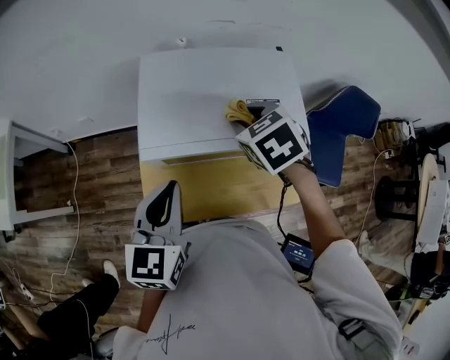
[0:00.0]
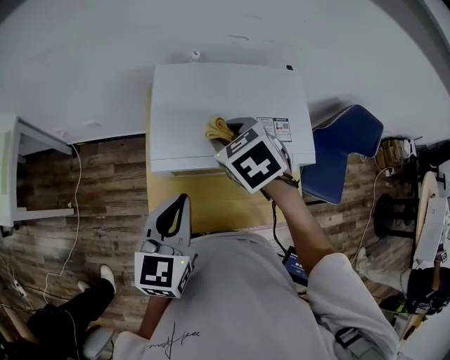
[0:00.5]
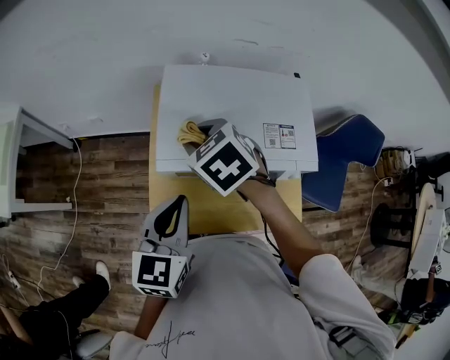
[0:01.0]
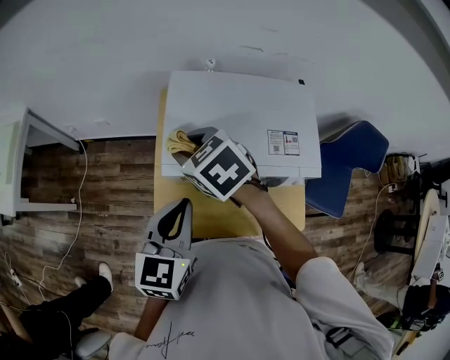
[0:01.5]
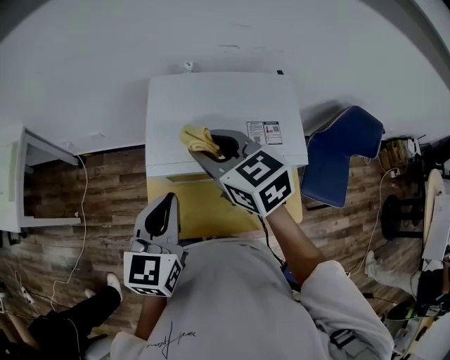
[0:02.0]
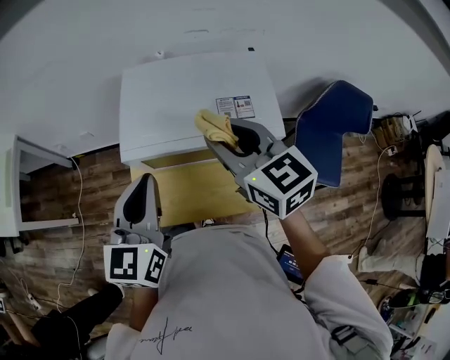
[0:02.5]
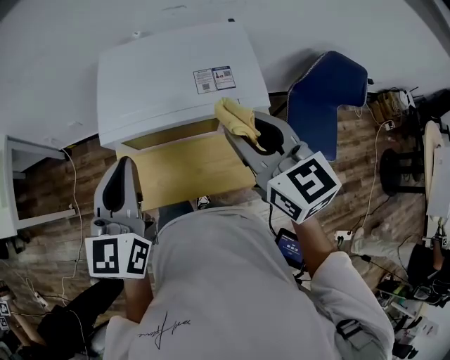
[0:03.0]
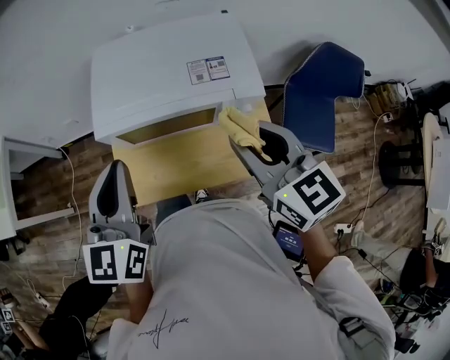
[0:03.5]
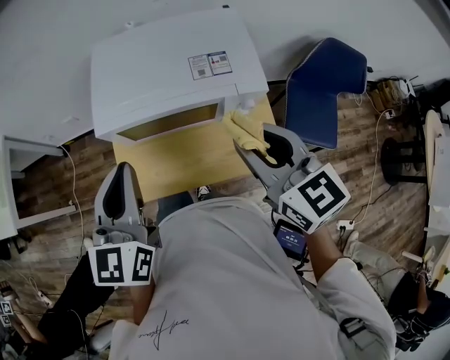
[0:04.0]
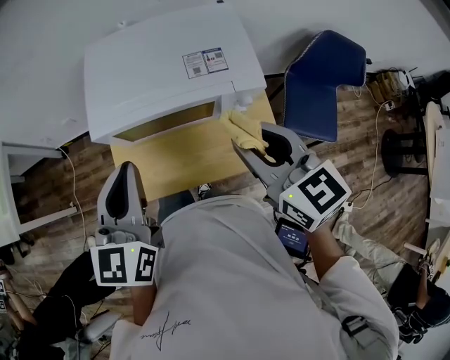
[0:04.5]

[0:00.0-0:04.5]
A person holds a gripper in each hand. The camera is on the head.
0.0 to 2.0 s: The right gripper is displaced to the left and upward by roughly 10 cm, and changes its angle by some 40 degrees.
2.0 to 4.5 s: The left gripper changes place by some 5 cm. Meanwhile the right gripper shifts about 25 cm to the right and backward.

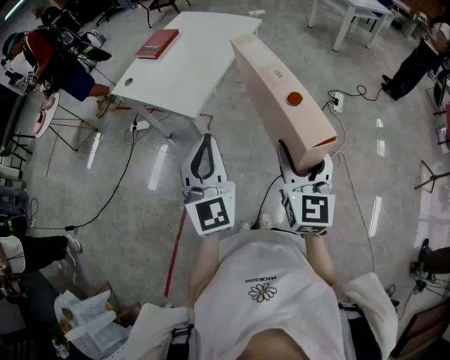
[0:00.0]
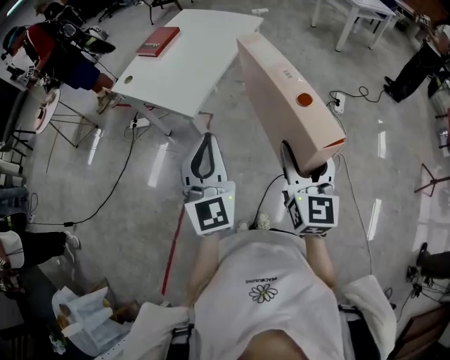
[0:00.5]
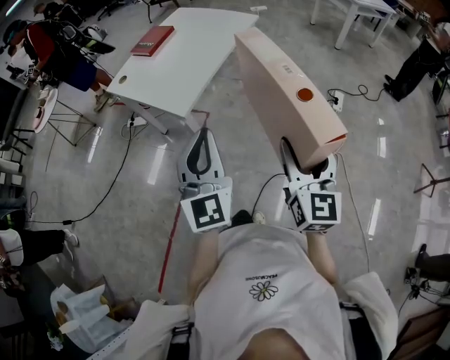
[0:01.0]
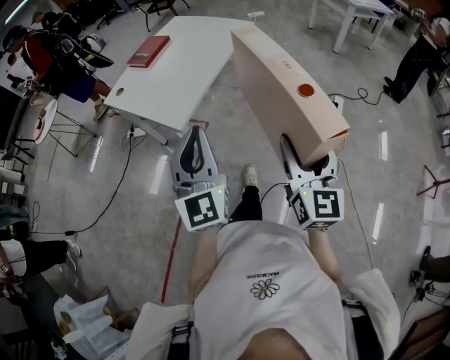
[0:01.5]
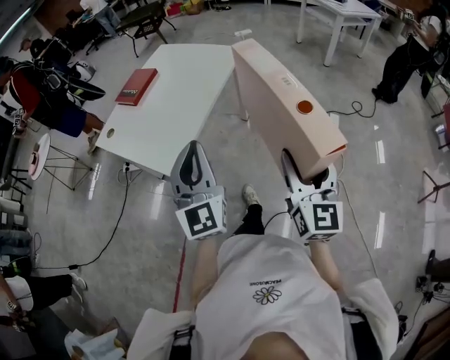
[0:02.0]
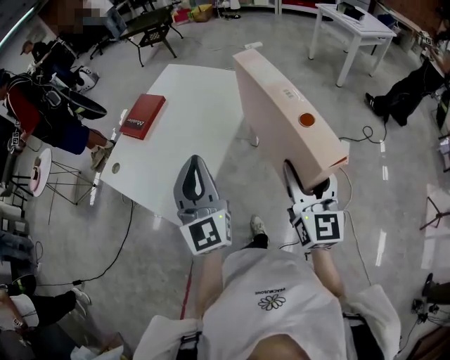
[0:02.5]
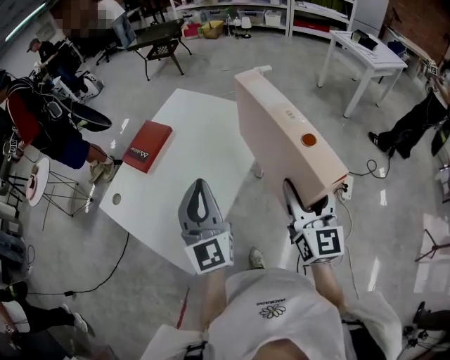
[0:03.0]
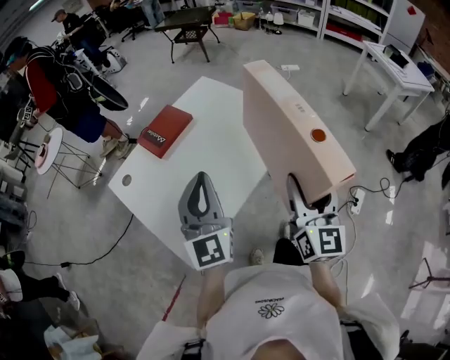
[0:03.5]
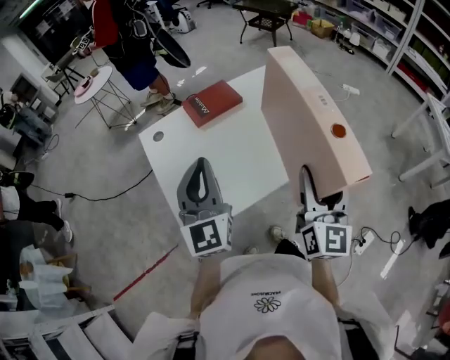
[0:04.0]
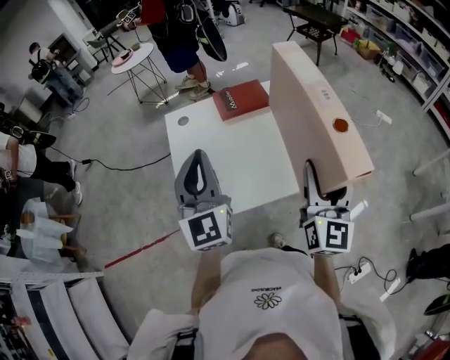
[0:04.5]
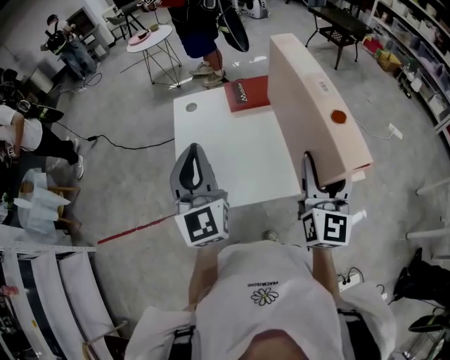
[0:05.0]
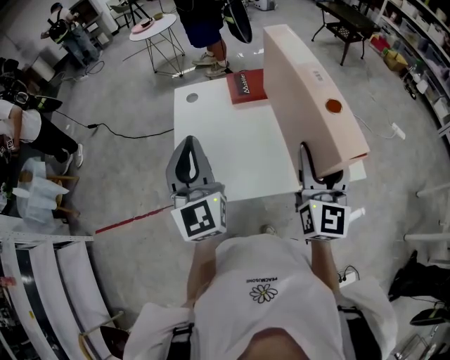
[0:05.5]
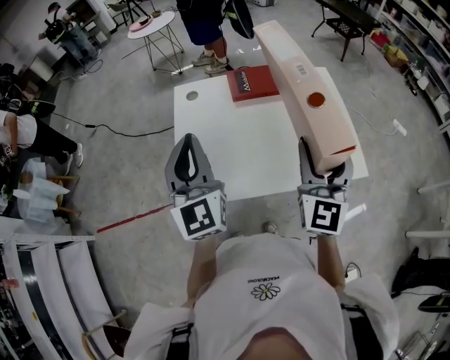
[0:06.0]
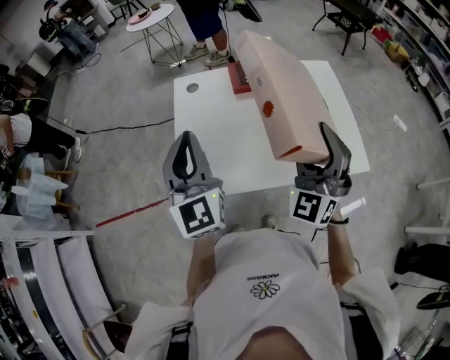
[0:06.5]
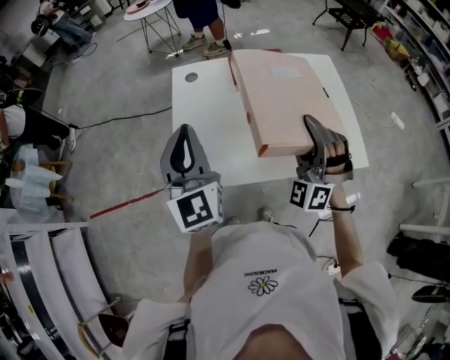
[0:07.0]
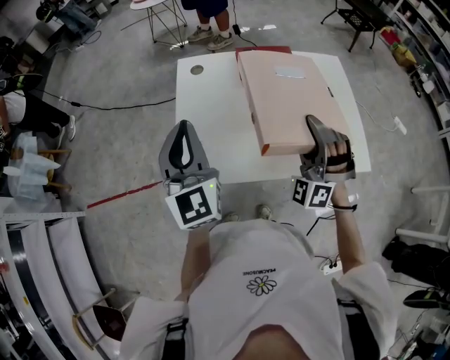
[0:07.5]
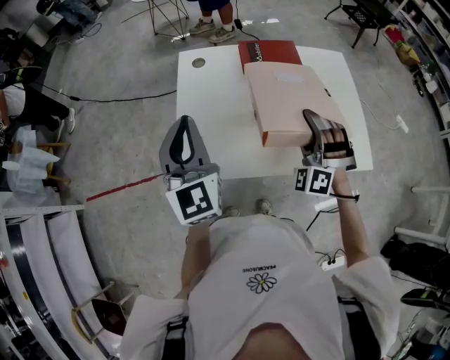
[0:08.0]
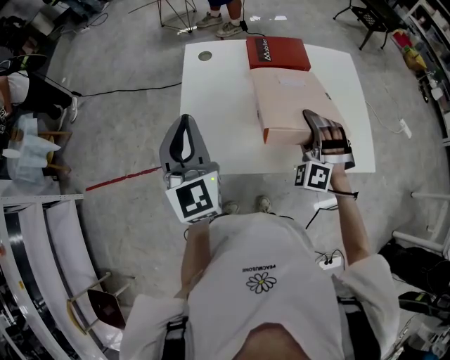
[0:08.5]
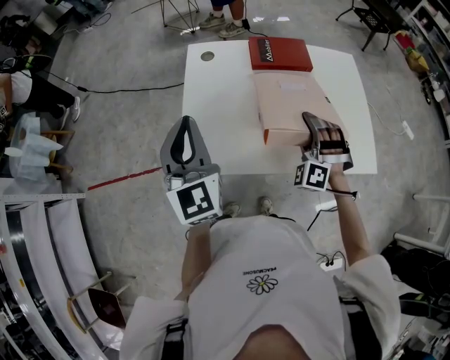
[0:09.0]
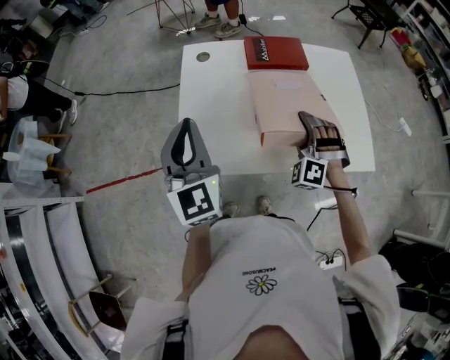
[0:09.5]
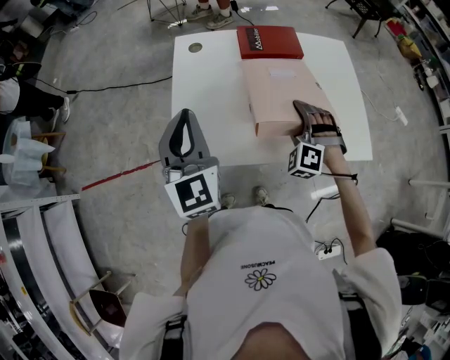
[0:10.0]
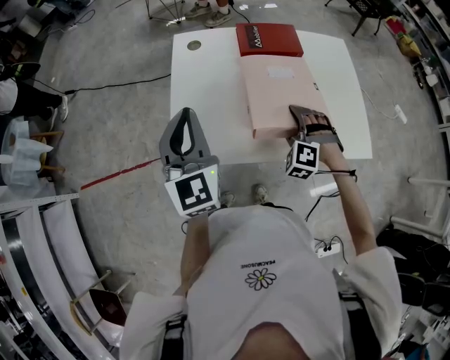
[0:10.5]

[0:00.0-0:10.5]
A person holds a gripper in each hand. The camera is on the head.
0.0 to 2.0 s: The left gripper shifts some 20 cm forward, while the right gripper is displaced forward and to the right by some 20 cm.
2.0 to 4.0 s: The left gripper moves some 30 cm, and turns by some 30 degrees; the right gripper changes place by some 40 cm, and changes its angle by roughly 30 degrees.
4.0 to 6.5 s: The left gripper changes place by roughly 5 cm, and changes its angle by approximately 30 degrees. The right gripper moves about 15 cm, and rolls counterclockwise, seen from behind, by approximately 50 degrees.
6.5 to 8.5 s: The left gripper changes place by roughly 5 cm. The right gripper goes roughly 15 cm downward and forward, and rotates roughly 50 degrees.
8.5 to 10.5 s: The right gripper goes some 10 cm downward, and changes its angle by some 20 degrees.

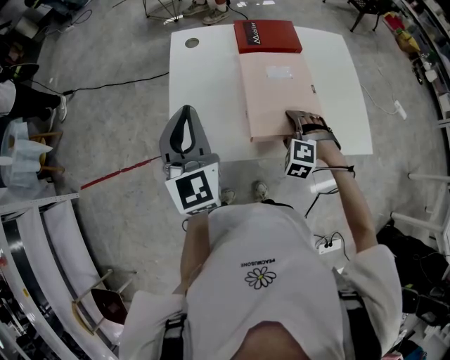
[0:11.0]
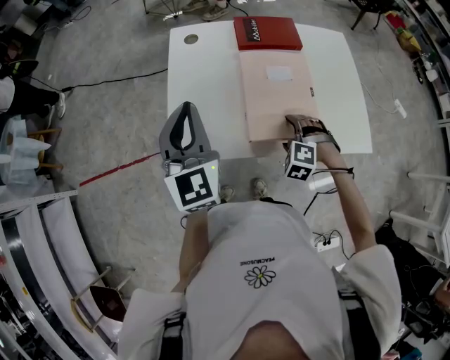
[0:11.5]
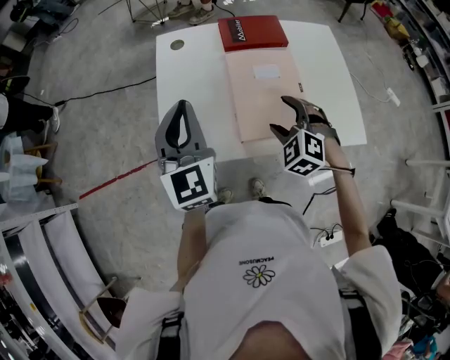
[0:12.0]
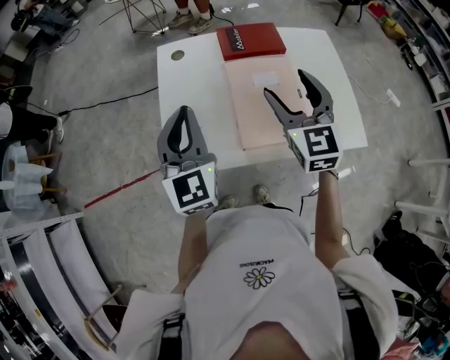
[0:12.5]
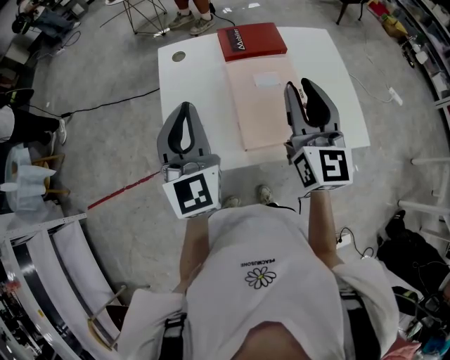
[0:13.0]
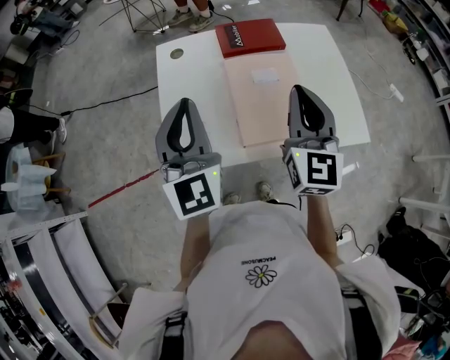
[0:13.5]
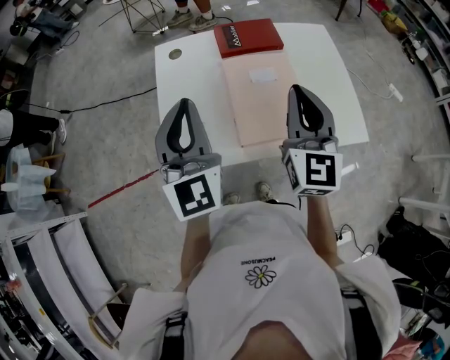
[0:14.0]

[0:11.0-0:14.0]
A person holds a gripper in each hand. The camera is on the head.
11.0 to 12.5 s: The right gripper travels upward by roughly 25 cm, and tilts its fingers about 50 degrees upward.
12.5 to 14.0 s: The left gripper shifts by roughly 5 cm. Meanwhile the right gripper shifts by roughly 5 cm, and closes its fingers.

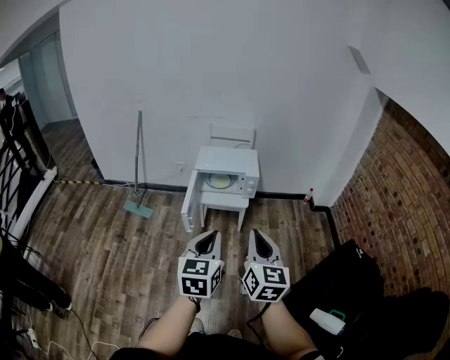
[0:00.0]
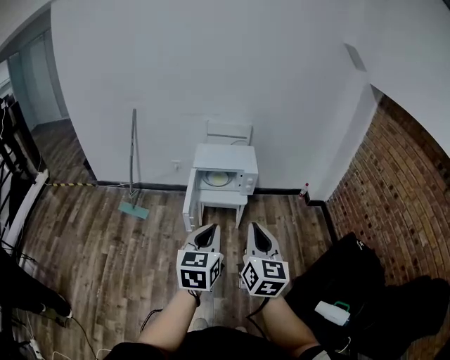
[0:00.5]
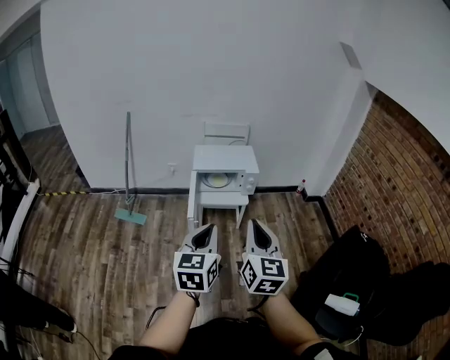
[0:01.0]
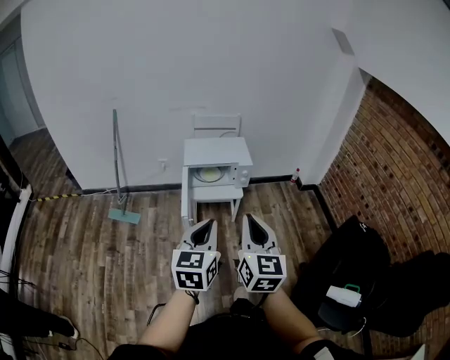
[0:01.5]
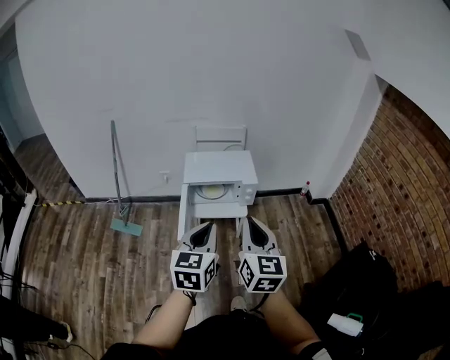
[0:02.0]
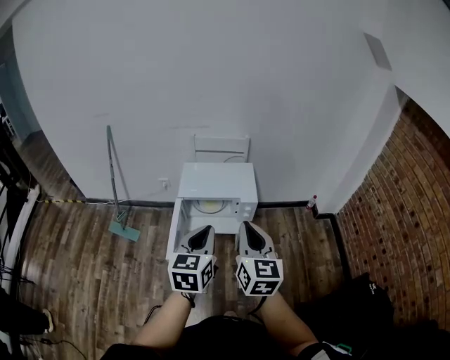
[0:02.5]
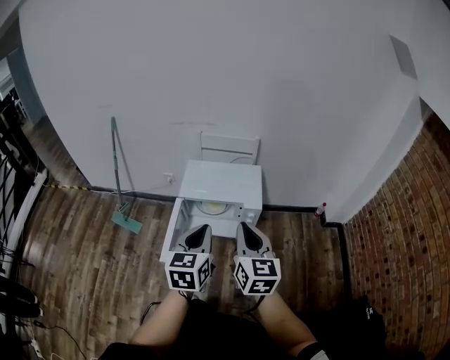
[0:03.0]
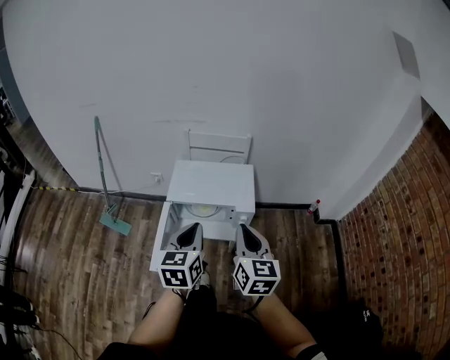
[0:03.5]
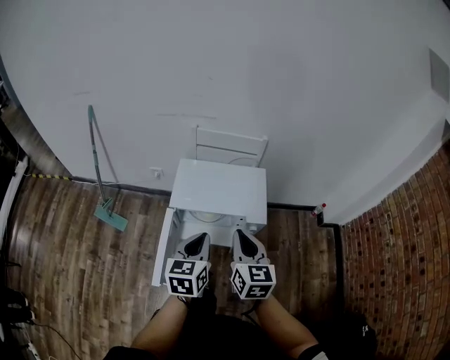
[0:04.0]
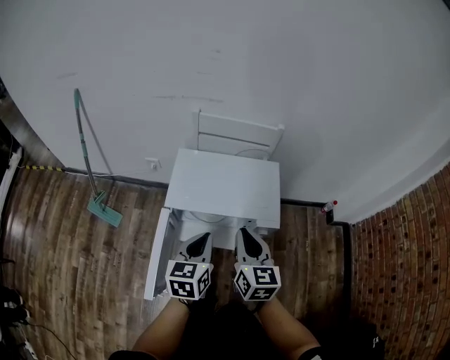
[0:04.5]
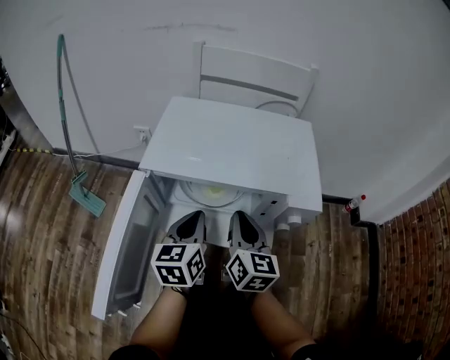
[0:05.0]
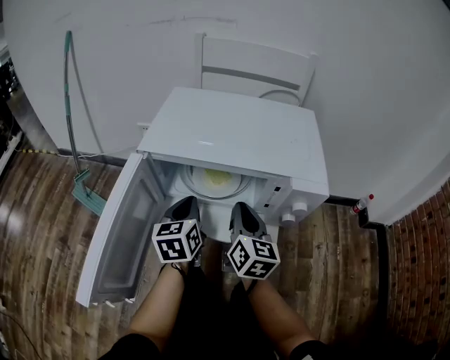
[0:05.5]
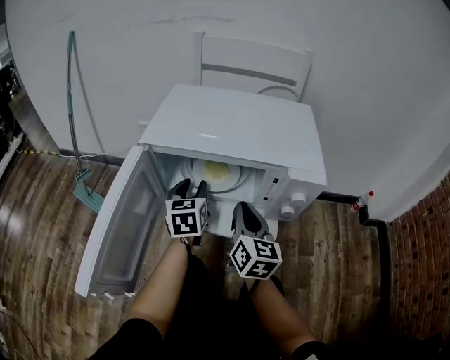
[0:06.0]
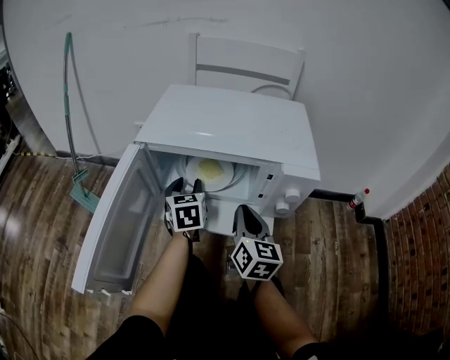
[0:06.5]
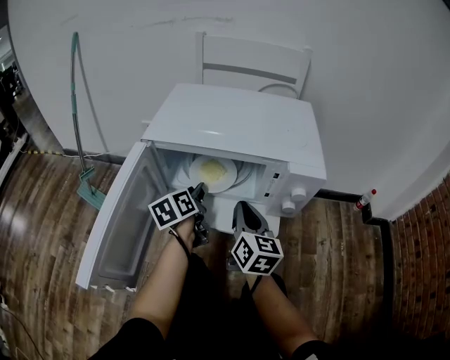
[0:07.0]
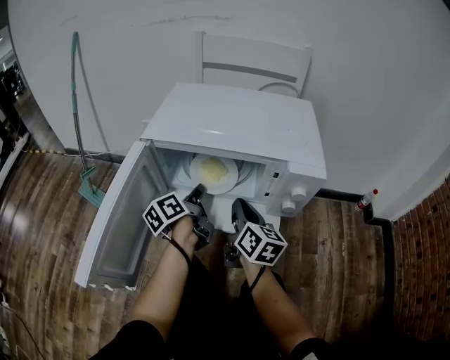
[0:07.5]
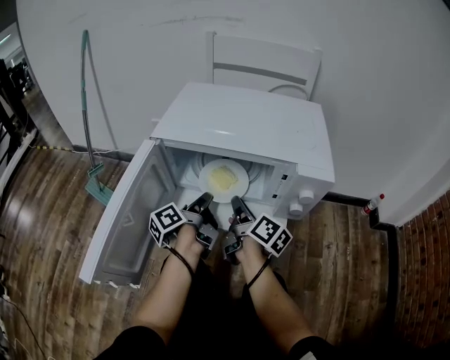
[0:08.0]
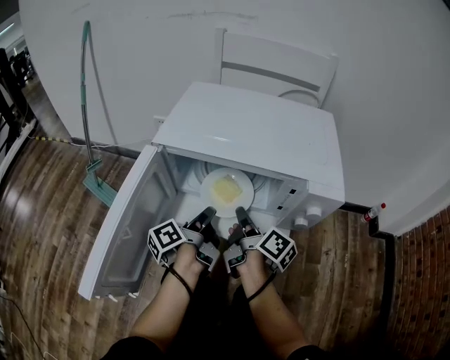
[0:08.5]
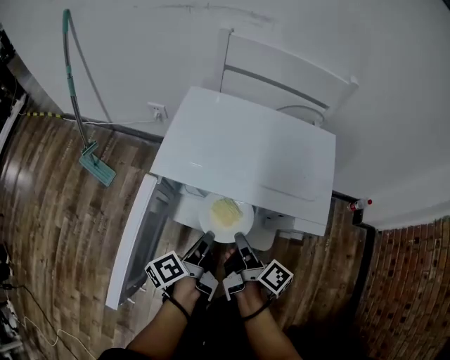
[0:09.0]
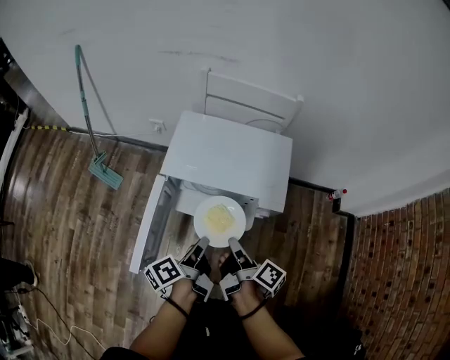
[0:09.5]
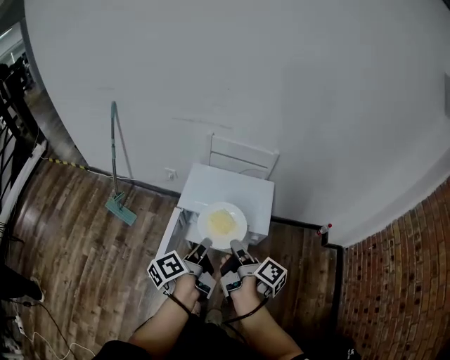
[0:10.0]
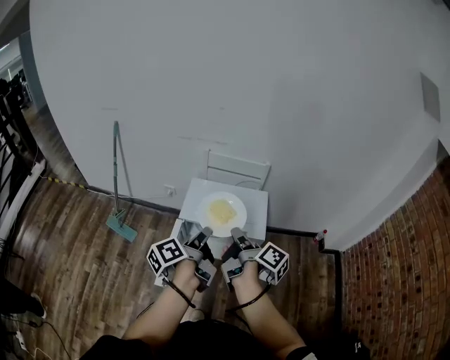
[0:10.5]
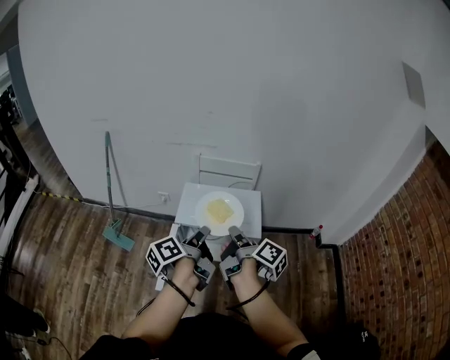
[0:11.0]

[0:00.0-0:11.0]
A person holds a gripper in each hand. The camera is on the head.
0.0 to 2.0 s: Both grippers travel together forward and to the left, about 20 cm.
2.0 to 3.5 s: The two grippers go some 25 cm forward.
3.5 to 5.5 s: Both grippers move downward and forward, about 50 cm.
5.5 to 7.5 s: The left gripper twists roughly 40 degrees counterclockwise, seen from behind, and opens, then closes once more.
7.5 to 9.0 s: The right gripper ends up approximately 5 cm from where it was, and twists about 50 degrees clockwise, seen from behind; the left gripper heads backward and upward, covering approximately 10 cm, and changes its angle by approximately 20 degrees.
9.0 to 11.0 s: Both grippers move upward, approximately 50 cm.
